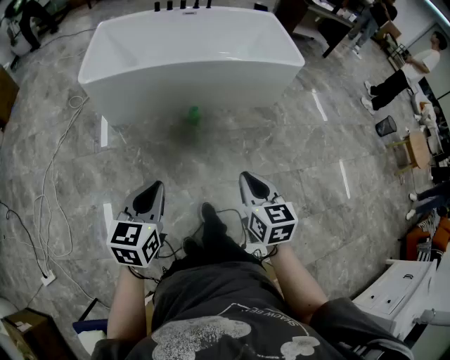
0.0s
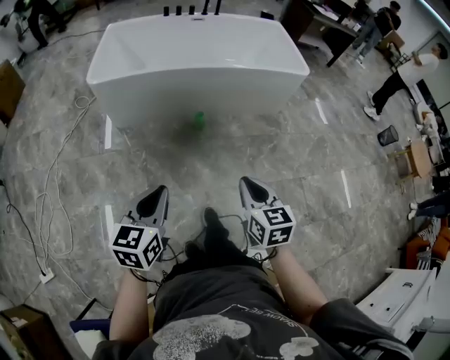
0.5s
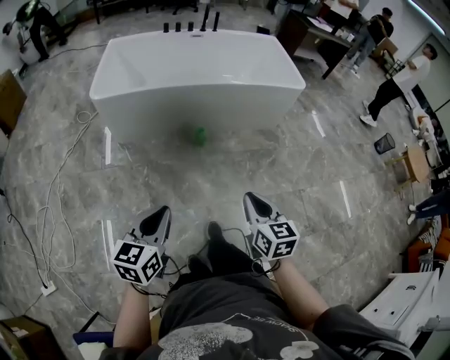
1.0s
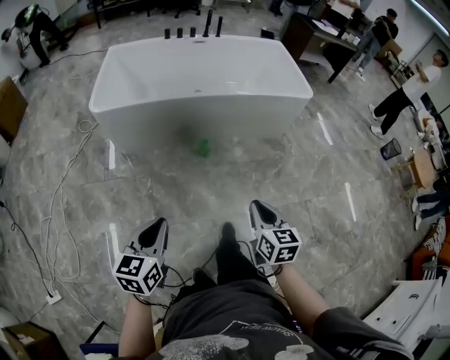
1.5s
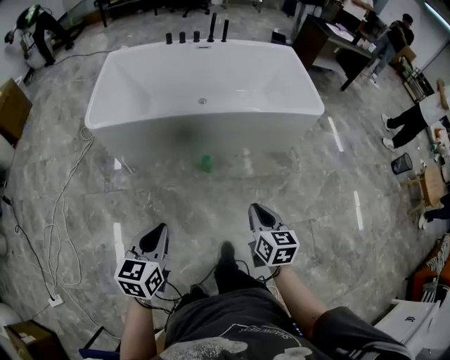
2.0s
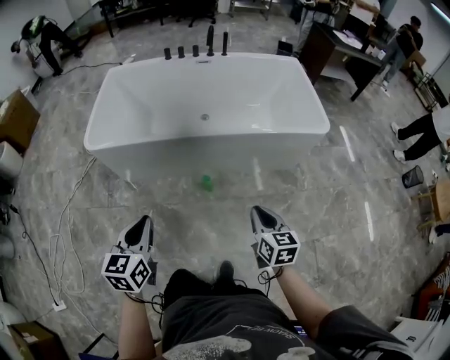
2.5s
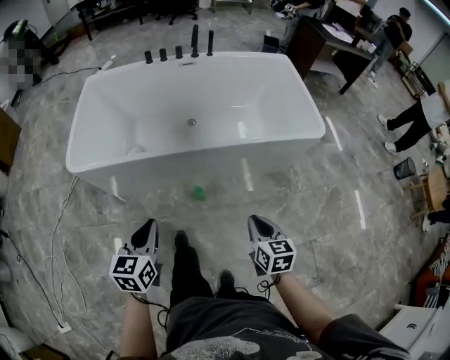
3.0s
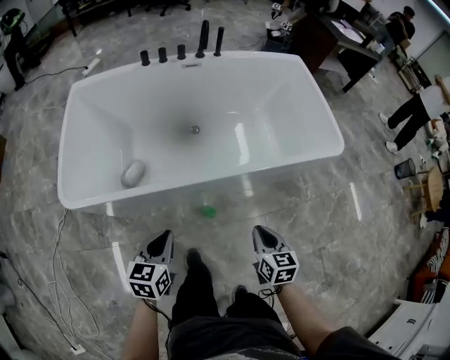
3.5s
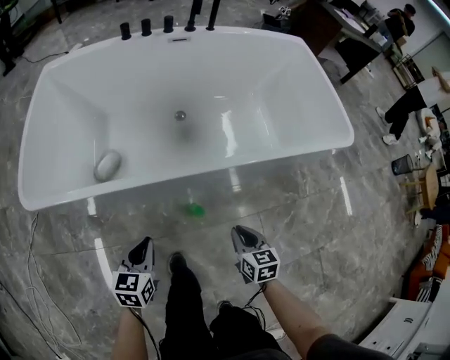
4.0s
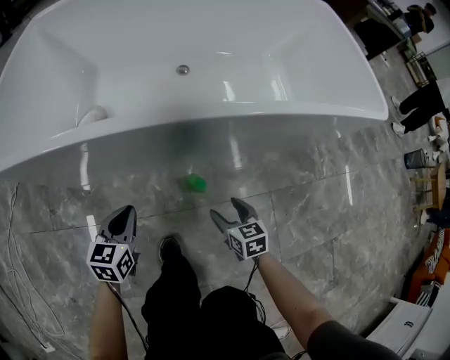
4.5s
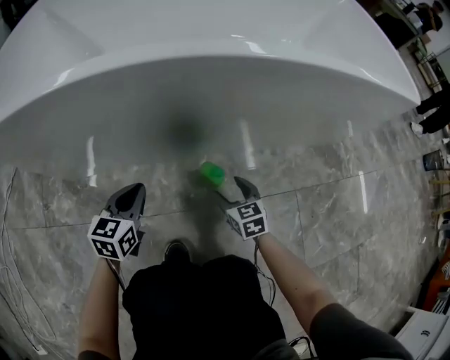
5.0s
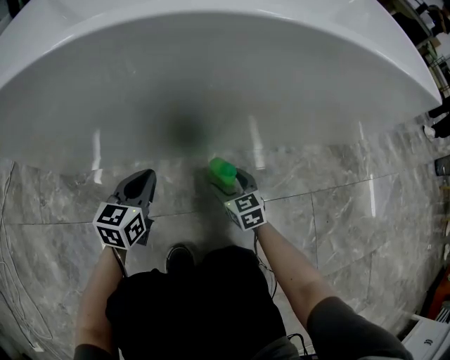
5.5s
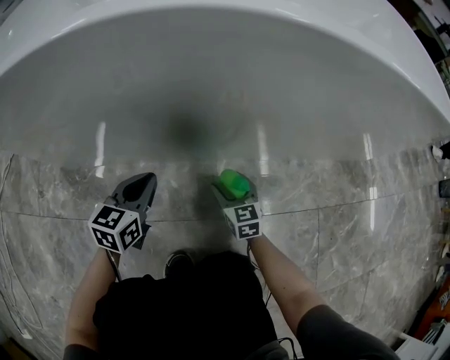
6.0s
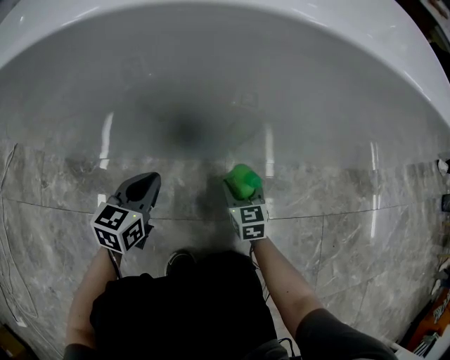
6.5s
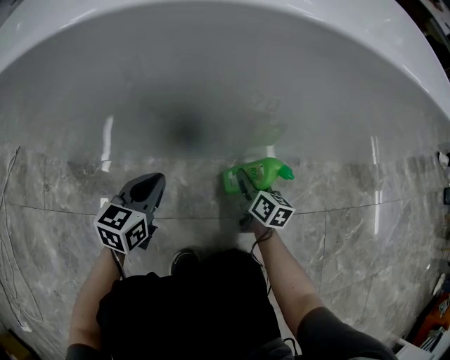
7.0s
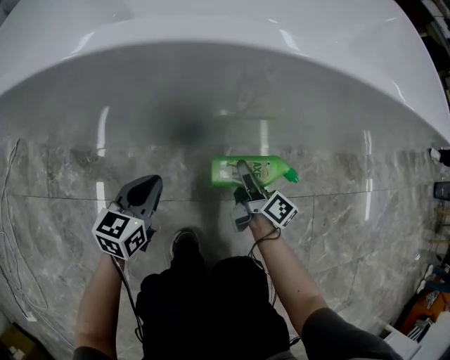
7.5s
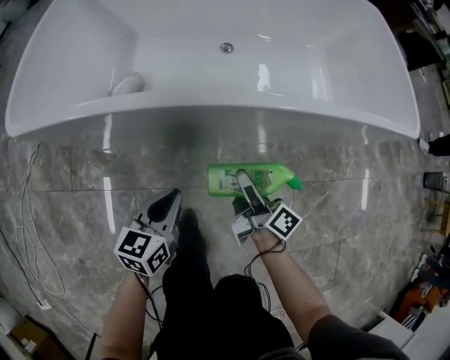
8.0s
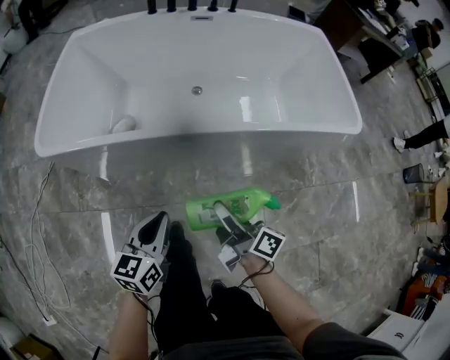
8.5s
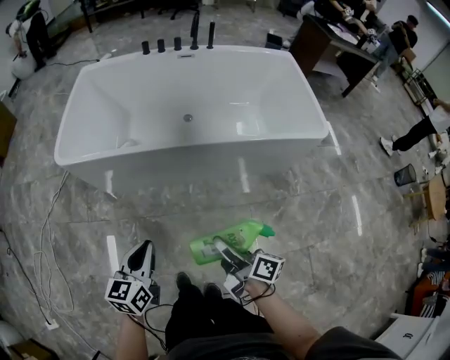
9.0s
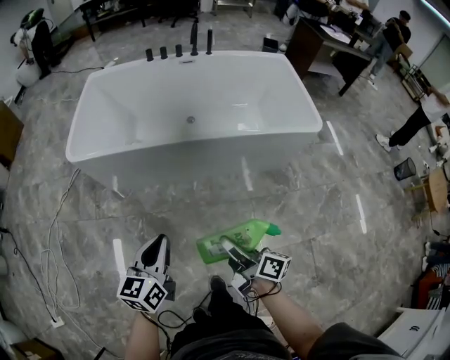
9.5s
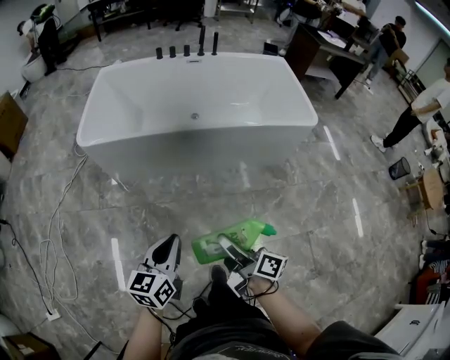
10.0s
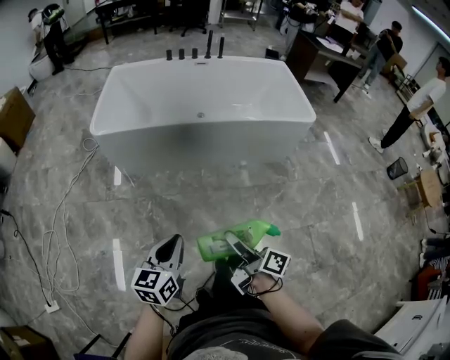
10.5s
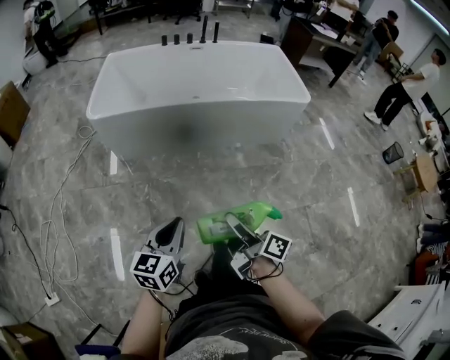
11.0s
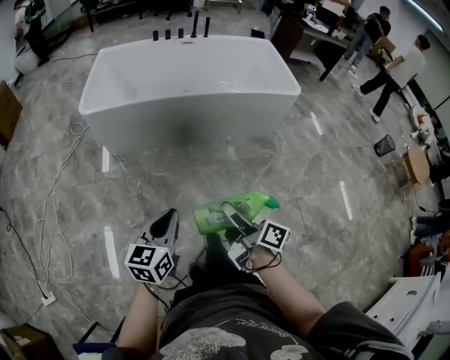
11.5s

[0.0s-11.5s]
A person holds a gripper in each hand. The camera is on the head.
0.0s to 2.0s: The grippers both shift forward by approximately 20 cm.
2.0s to 4.0s: Both grippers move forward and downward, approximately 50 cm.
4.0s to 6.0s: Both grippers travel together downward, roughly 40 cm. The right gripper swivels approximately 20 degrees, and opens up.
6.0s to 7.5s: The left gripper goes approximately 5 cm upward. Meanwhile the right gripper goes approximately 10 cm upward, twists approximately 60 degrees clockwise, seen from behind, and closes its fingers.
7.5s to 9.5s: The grippers both shift upward and backward by approximately 70 cm.
9.5s to 11.5s: The two grippers go approximately 25 cm backward.

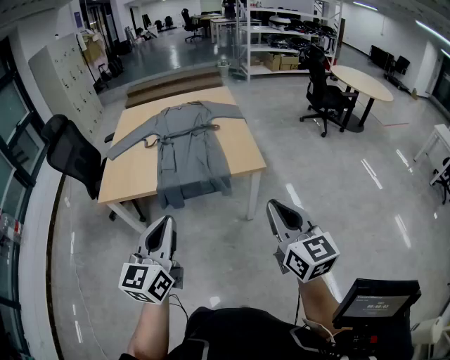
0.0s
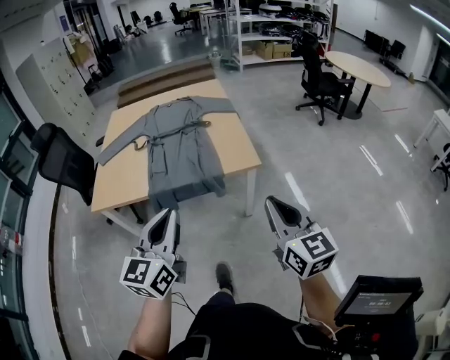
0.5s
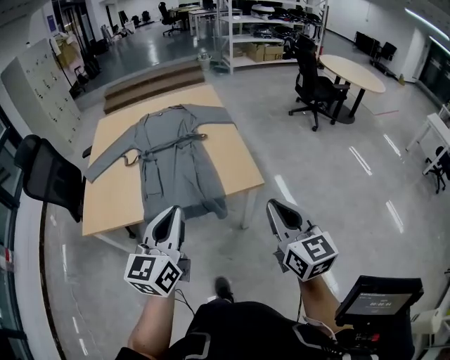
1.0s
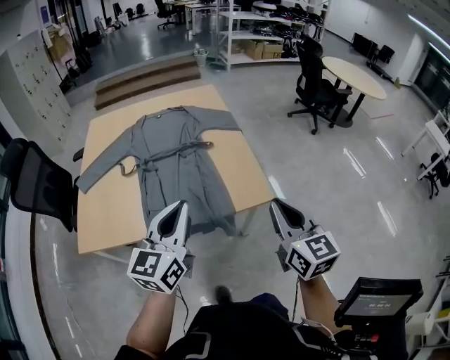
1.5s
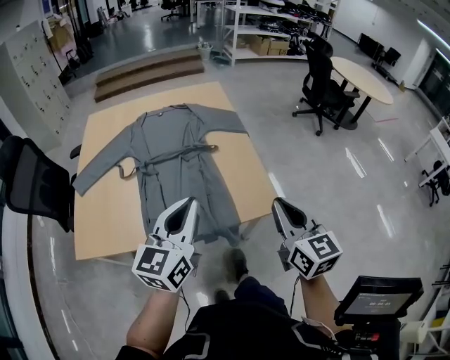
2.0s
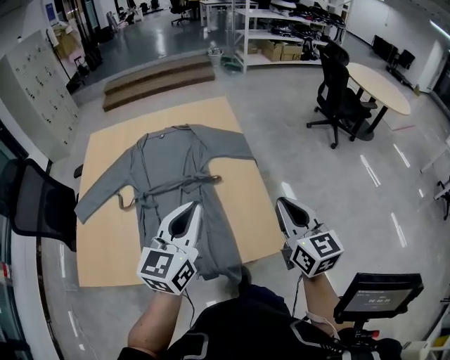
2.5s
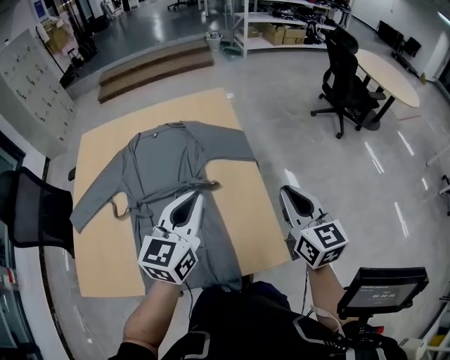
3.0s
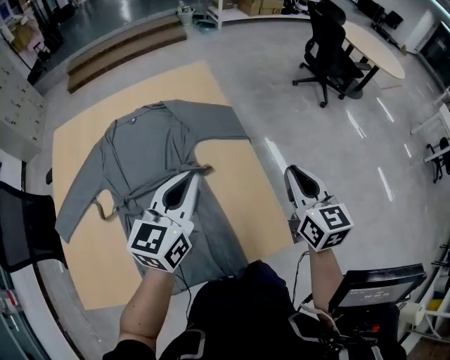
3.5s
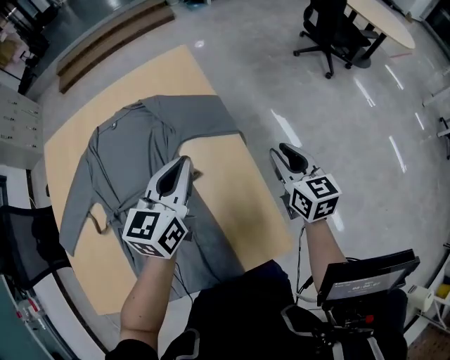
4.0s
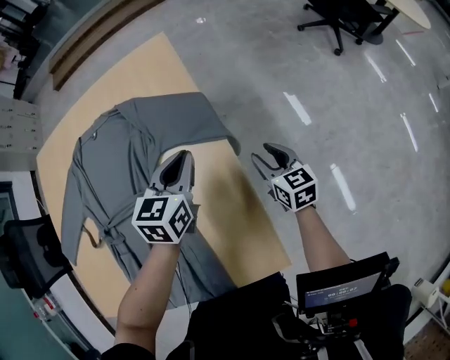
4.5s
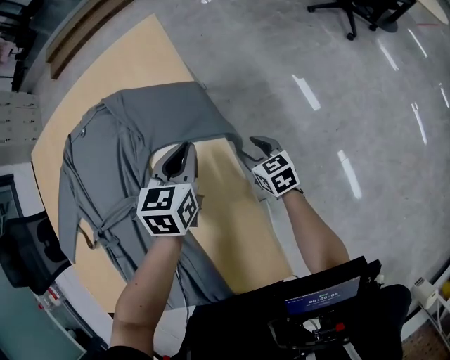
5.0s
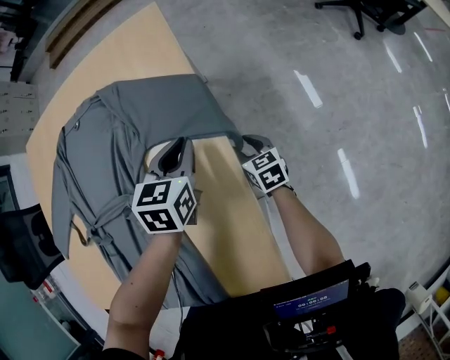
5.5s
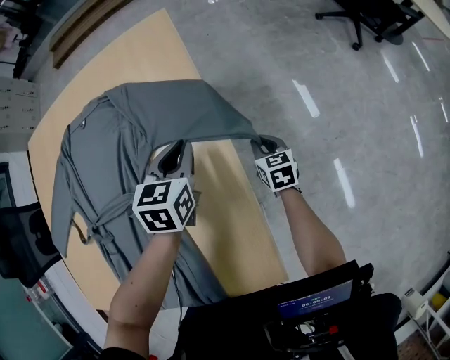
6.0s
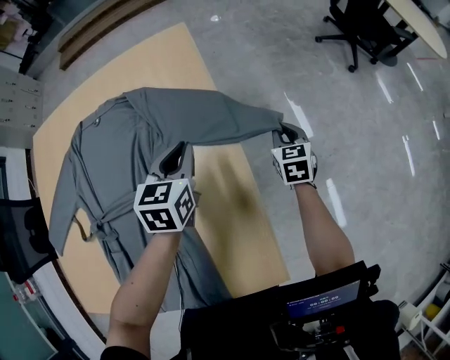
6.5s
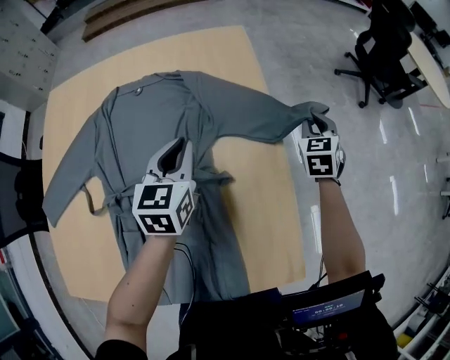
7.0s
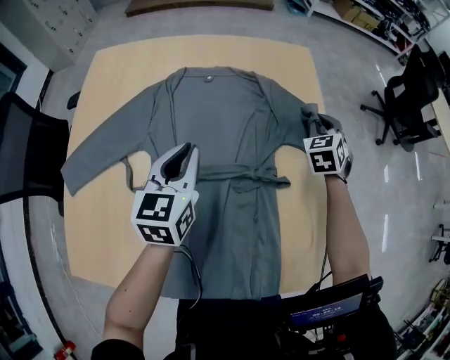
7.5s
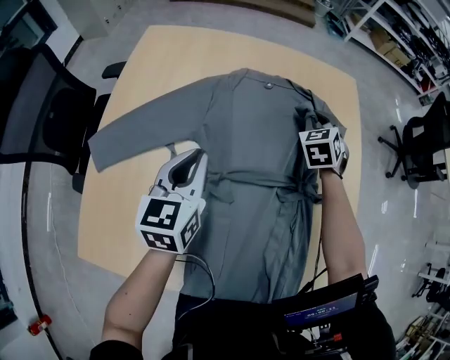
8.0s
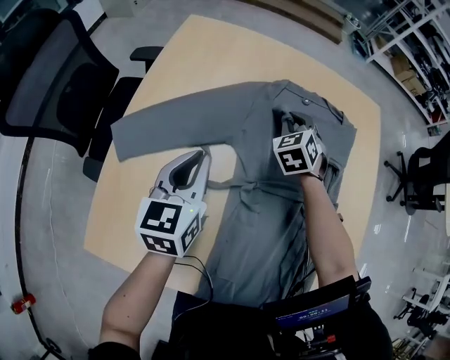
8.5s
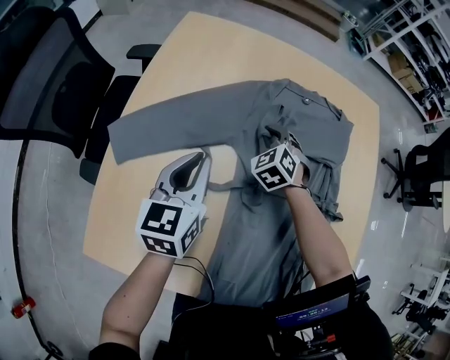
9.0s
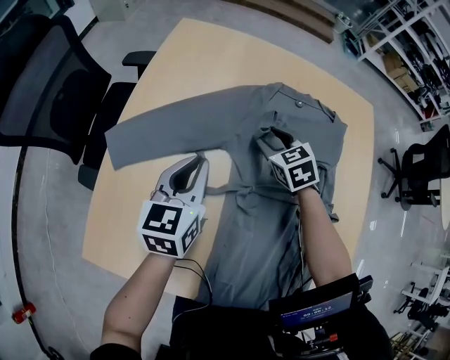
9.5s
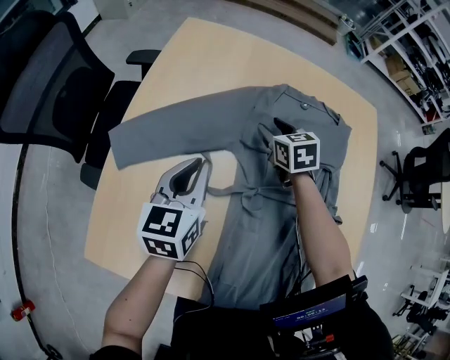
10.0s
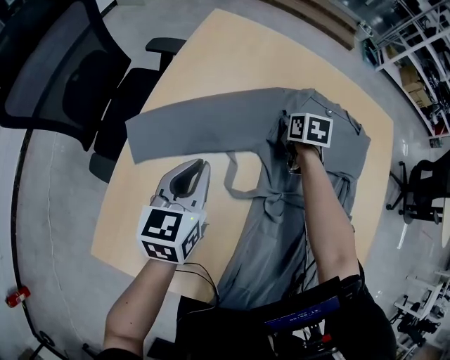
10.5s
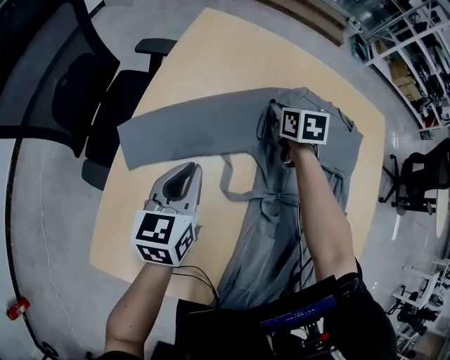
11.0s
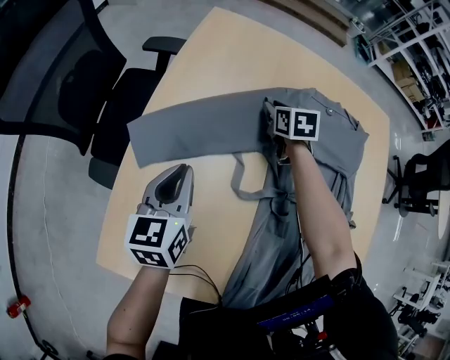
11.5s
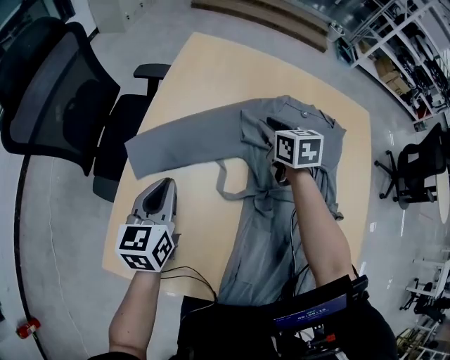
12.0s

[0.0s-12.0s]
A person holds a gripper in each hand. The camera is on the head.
0.0s to 2.0s: The two grippers go some 35 cm forward.
2.0s to 4.0s: The right gripper goes approximately 40 cm forward and downward; the left gripper is displaced forward by some 35 cm.
4.0s to 6.0s: The right gripper moves downward, roughly 30 cm, changes its angle by about 20 degrees, and opens, then closes again, while the left gripper heads downward and forward, covering roughly 20 cm, and changes its angle by approximately 30 degrees.
6.0s to 8.0s: The right gripper shifts about 40 cm to the left and upward, and rotates around the line of its fingers by about 50 degrees, counterclockwise from behind. The left gripper heads to the left, covering approximately 40 cm, and swivels approximately 30 degrees.
8.0s to 10.0s: The left gripper moves to the left, some 10 cm; the right gripper travels to the left by approximately 25 cm, changes its angle by some 40 degrees, and opens.
10.0s to 12.0s: The right gripper heads upward and to the left, covering approximately 10 cm, and closes, while the left gripper moves to the left, some 10 cm.

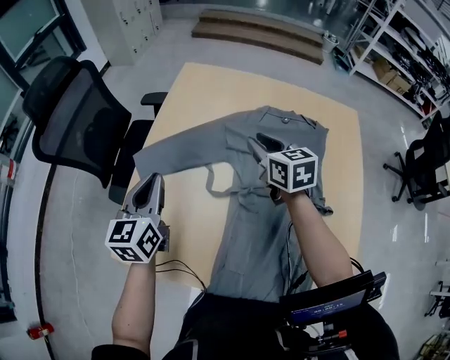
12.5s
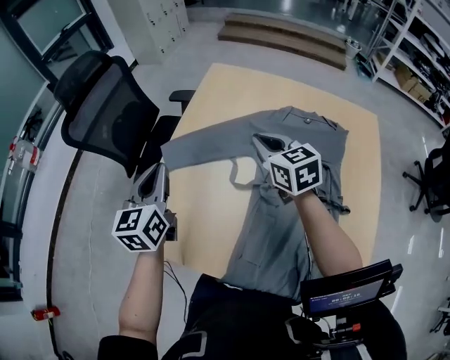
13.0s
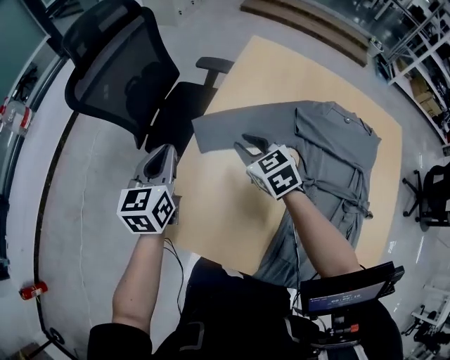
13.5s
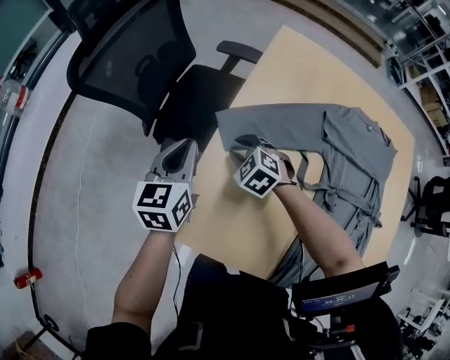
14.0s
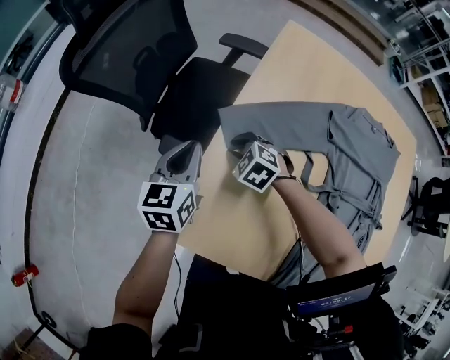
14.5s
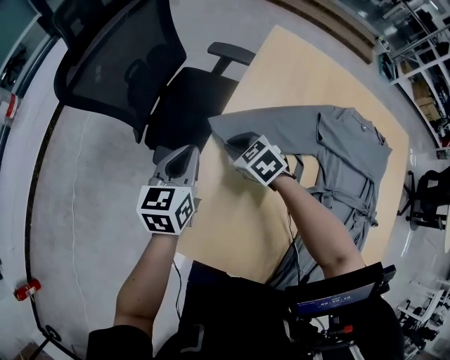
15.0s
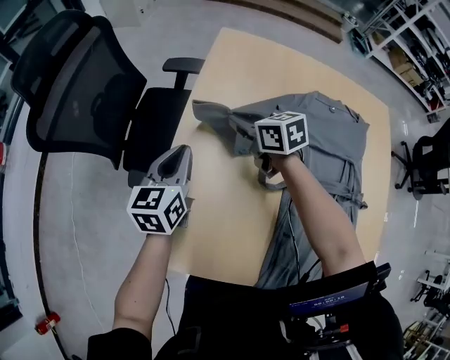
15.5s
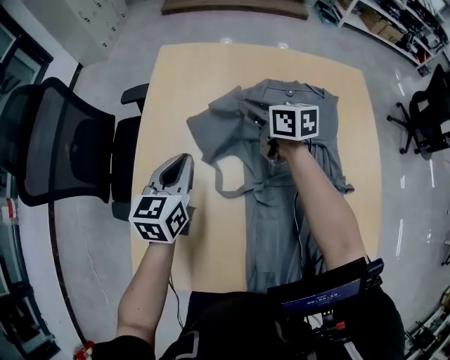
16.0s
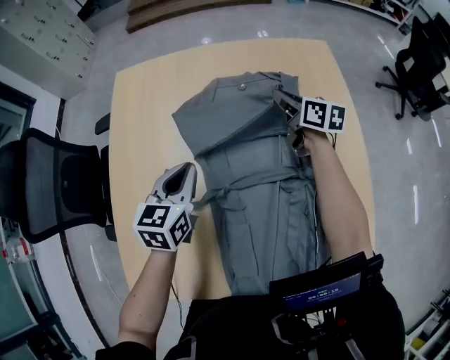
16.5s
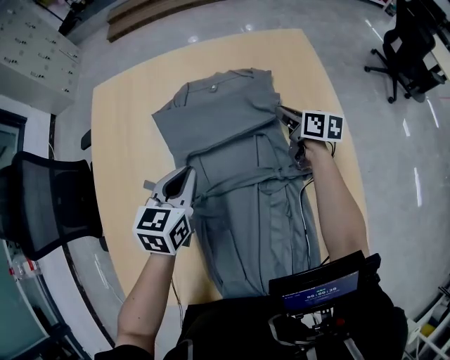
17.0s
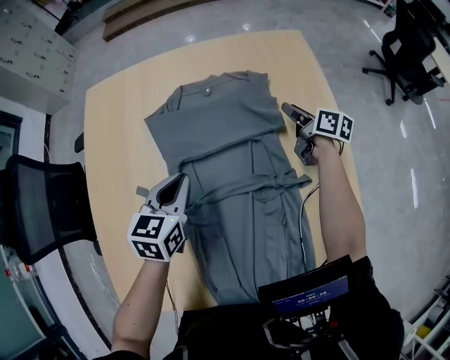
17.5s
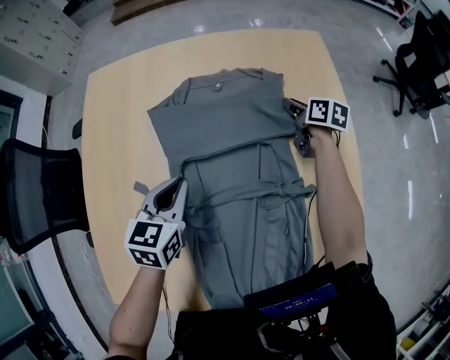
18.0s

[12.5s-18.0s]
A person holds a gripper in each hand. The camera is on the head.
12.5s to 14.5s: The left gripper moves to the left, downward and forward, roughly 25 cm. Meanwhile the right gripper travels to the left and downward by roughly 40 cm, points its fingers about 30 degrees further downward, and closes and opens again.
14.5s to 16.0s: The left gripper is displaced to the right by approximately 30 cm, and rotates roughly 20 degrees. The right gripper shifts some 40 cm to the right and upward, and rolls clockwise, seen from behind, by approximately 60 degrees.
16.0s to 18.0s: The left gripper moves to the right, some 20 cm; the right gripper is displaced to the right by about 40 cm, and turns by approximately 30 degrees.
